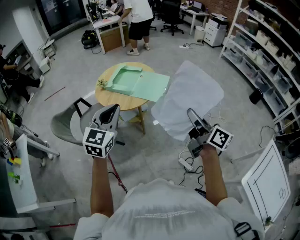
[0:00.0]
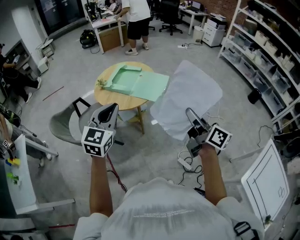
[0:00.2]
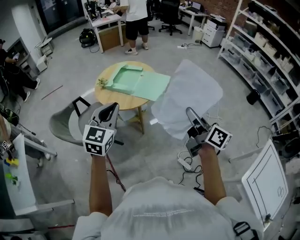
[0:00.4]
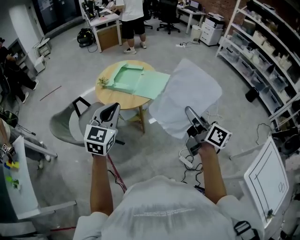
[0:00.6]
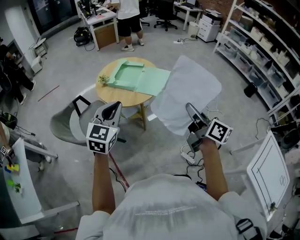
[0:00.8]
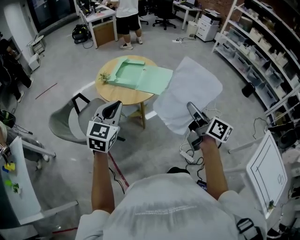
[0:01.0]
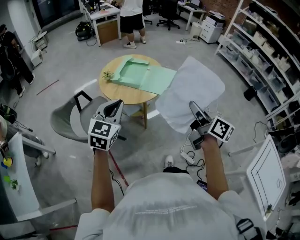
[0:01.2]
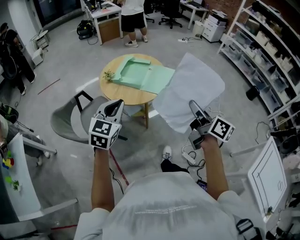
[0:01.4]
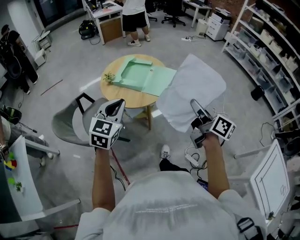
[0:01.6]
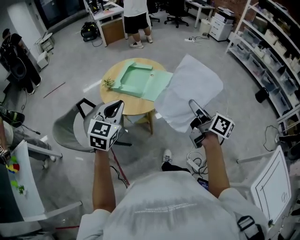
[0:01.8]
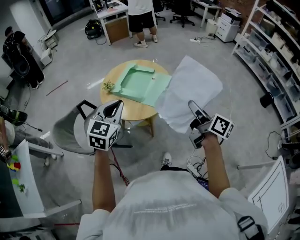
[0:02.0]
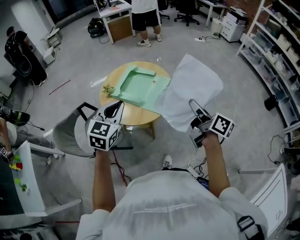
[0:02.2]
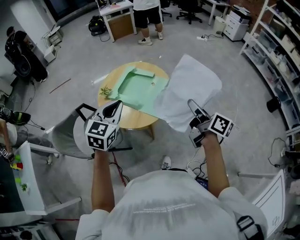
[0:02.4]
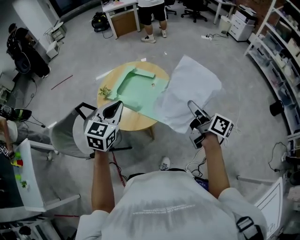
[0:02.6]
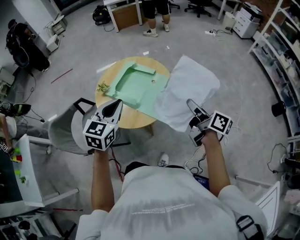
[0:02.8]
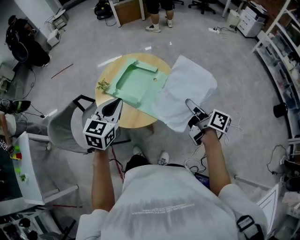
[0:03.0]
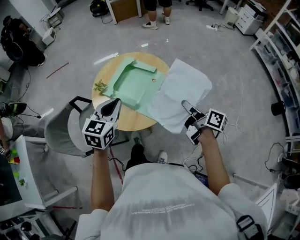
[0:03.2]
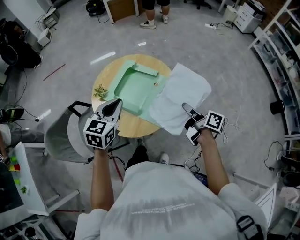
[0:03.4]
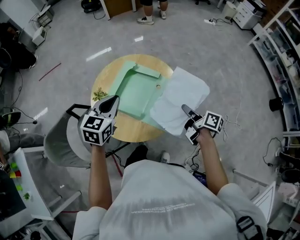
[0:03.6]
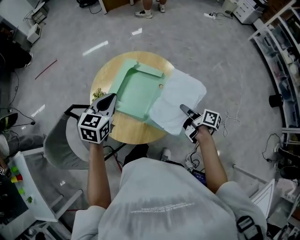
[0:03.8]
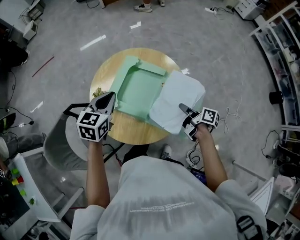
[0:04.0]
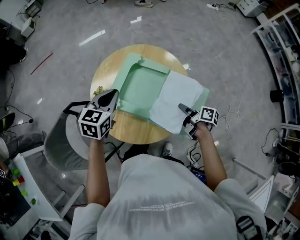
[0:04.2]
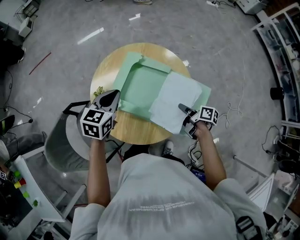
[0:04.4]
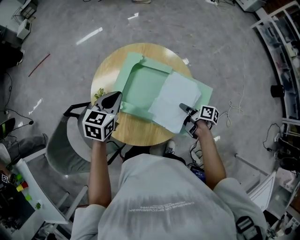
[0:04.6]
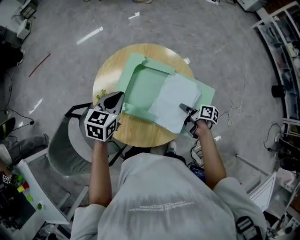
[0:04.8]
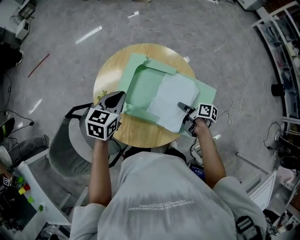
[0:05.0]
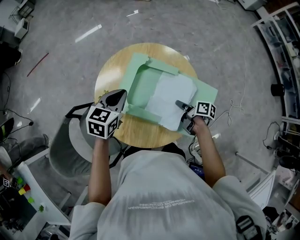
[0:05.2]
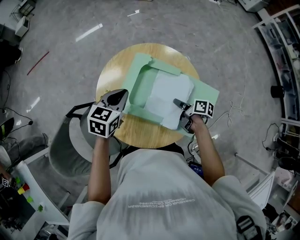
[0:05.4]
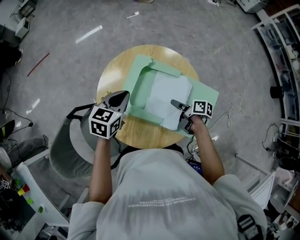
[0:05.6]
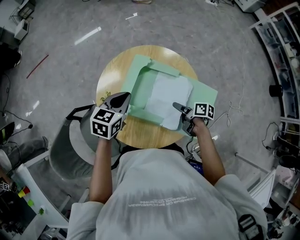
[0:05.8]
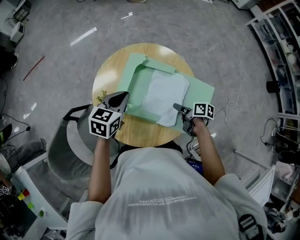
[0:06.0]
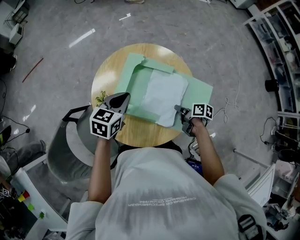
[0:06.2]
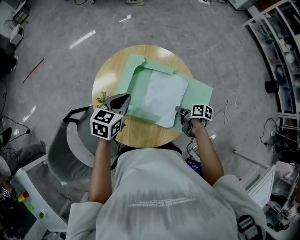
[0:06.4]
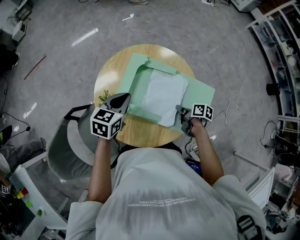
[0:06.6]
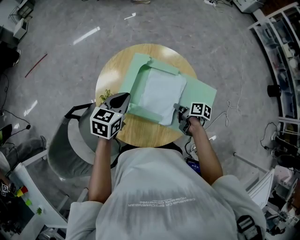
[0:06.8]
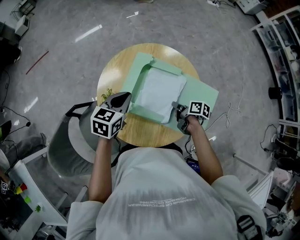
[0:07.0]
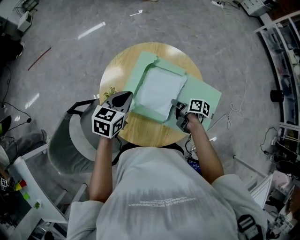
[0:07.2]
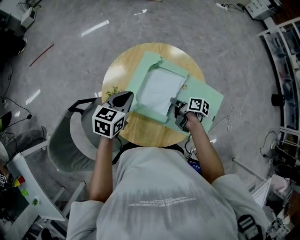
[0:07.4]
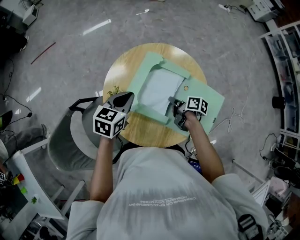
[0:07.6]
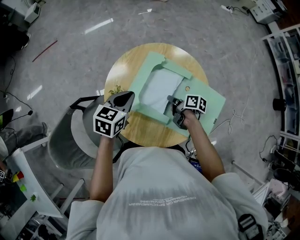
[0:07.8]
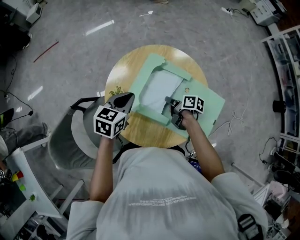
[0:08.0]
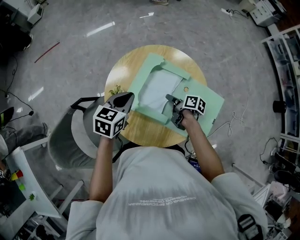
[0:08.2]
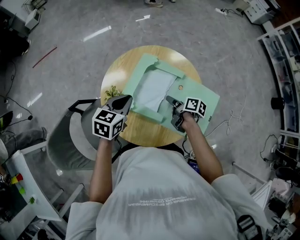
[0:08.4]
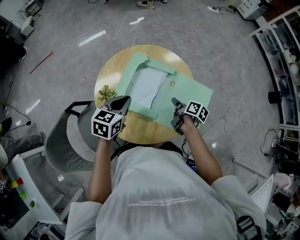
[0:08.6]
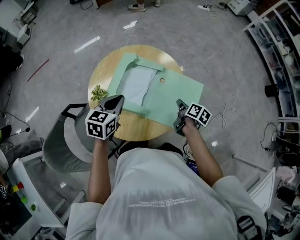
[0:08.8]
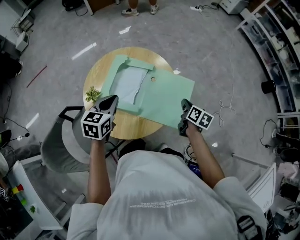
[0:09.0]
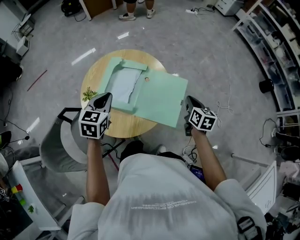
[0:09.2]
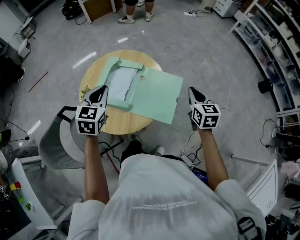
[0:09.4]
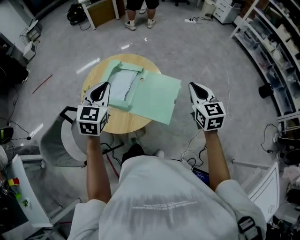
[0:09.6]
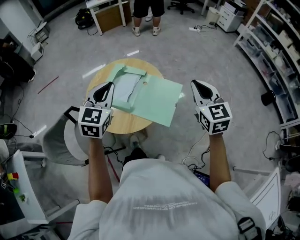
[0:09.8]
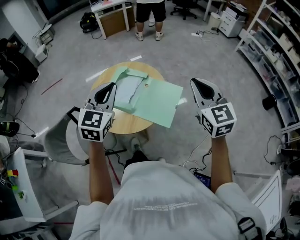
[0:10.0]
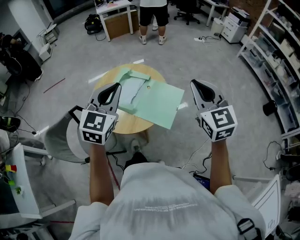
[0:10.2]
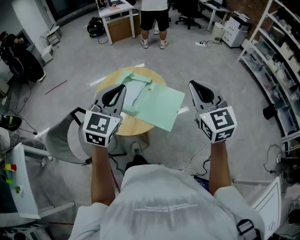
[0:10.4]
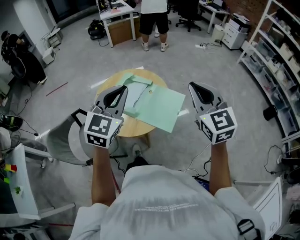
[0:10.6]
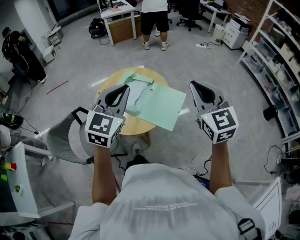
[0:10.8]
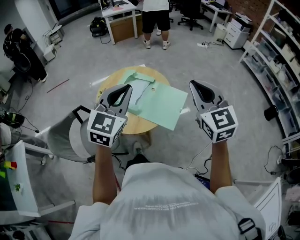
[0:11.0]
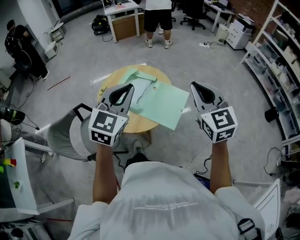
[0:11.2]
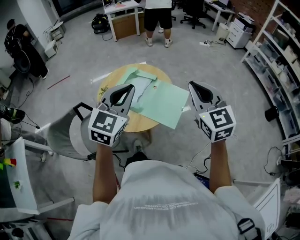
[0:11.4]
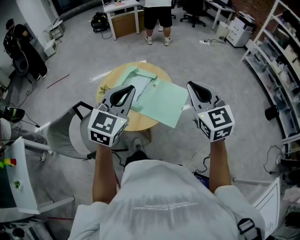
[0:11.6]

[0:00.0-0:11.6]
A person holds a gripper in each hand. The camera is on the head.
0.0 to 1.4 s: The left gripper heads to the left, downward and forward, covering some 15 cm; the right gripper travels to the left and forward by roughly 15 cm.
1.4 to 2.8 s: The right gripper heads forward, covering about 30 cm, and changes its angle by approximately 20 degrees; the left gripper moves forward and to the right, about 30 cm.
2.8 to 4.4 s: The left gripper shifts approximately 30 cm forward, downward and to the left; the right gripper goes about 35 cm downward and forward, and rotates roughly 40 degrees.
4.4 to 5.8 s: The right gripper is displaced to the left by about 5 cm, and opens.
5.8 to 7.2 s: The right gripper closes up.
7.2 to 8.8 s: The left gripper heads backward, covering approximately 5 cm; the right gripper travels to the right, upward and backward by roughly 15 cm, turns by approximately 20 degrees, and opens, then closes again.
8.8 to 10.2 s: The left gripper shifts approximately 35 cm upward, backward and to the right, and turns by about 40 degrees, while the right gripper moves upward, some 40 cm, and rolls counterclockwise, seen from behind, by approximately 80 degrees.
10.2 to 11.6 s: The right gripper ends up roughly 5 cm from where it was.

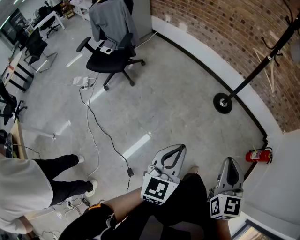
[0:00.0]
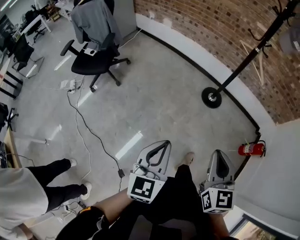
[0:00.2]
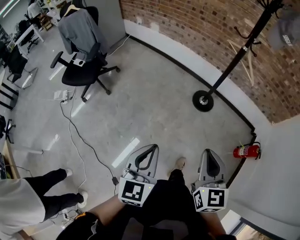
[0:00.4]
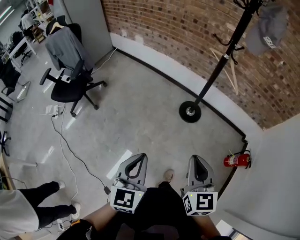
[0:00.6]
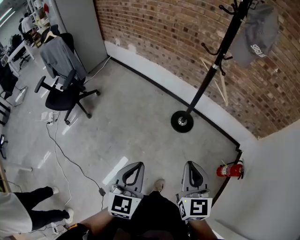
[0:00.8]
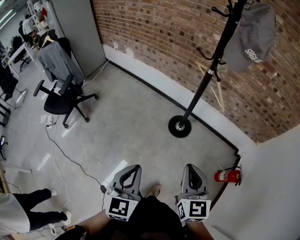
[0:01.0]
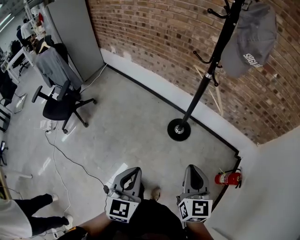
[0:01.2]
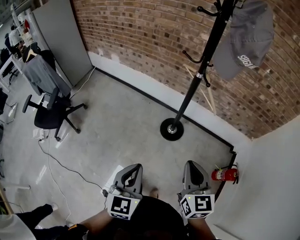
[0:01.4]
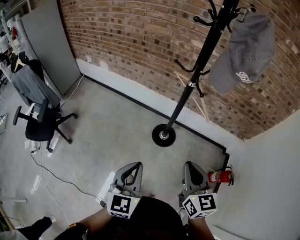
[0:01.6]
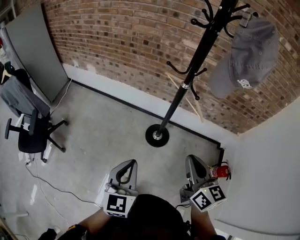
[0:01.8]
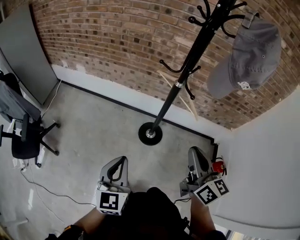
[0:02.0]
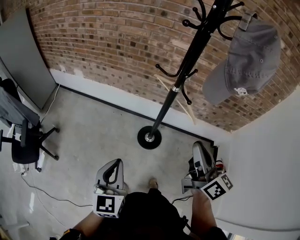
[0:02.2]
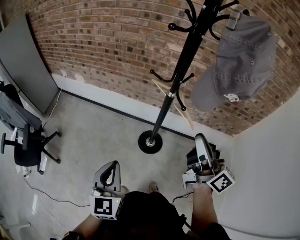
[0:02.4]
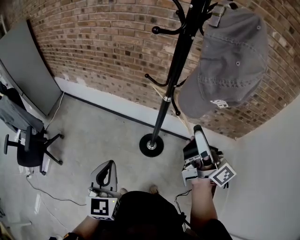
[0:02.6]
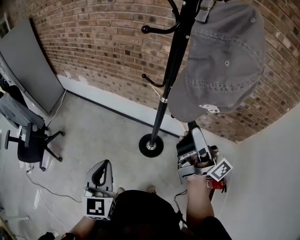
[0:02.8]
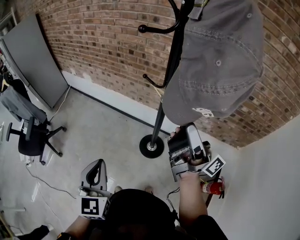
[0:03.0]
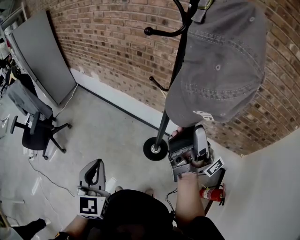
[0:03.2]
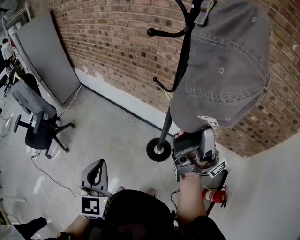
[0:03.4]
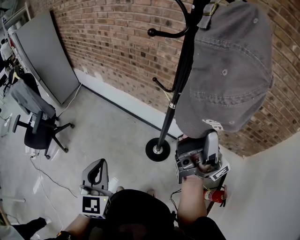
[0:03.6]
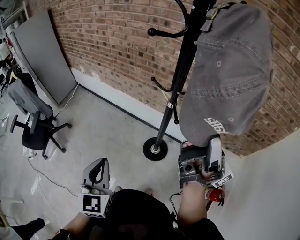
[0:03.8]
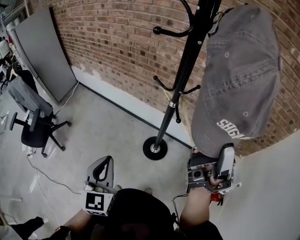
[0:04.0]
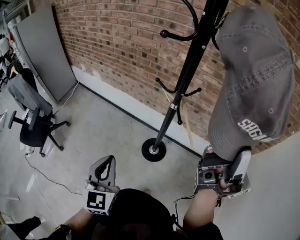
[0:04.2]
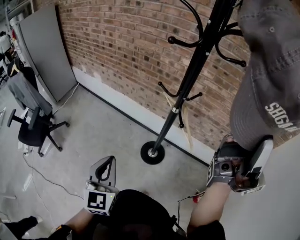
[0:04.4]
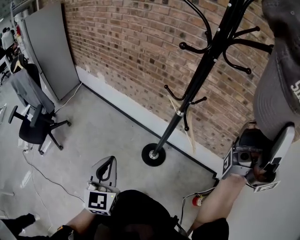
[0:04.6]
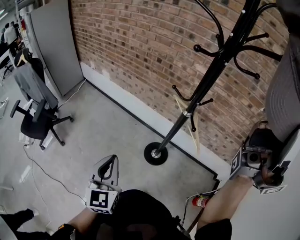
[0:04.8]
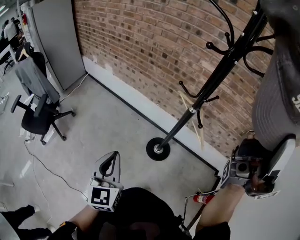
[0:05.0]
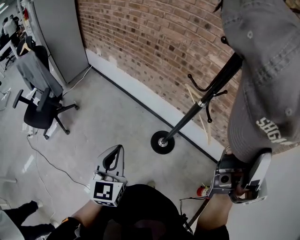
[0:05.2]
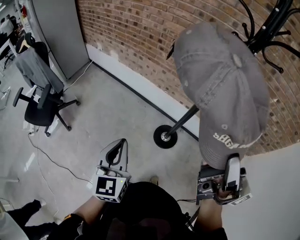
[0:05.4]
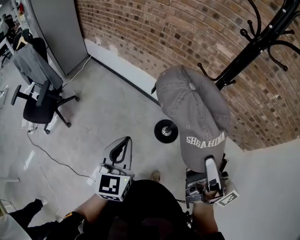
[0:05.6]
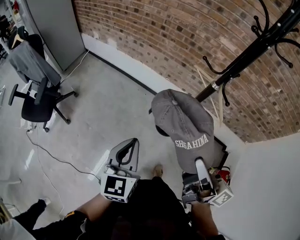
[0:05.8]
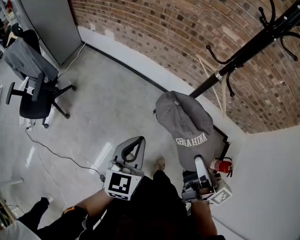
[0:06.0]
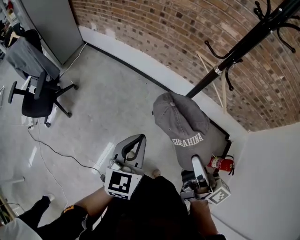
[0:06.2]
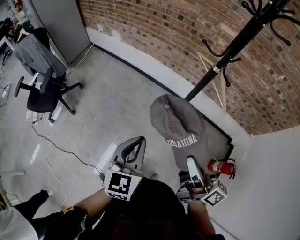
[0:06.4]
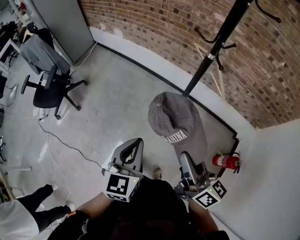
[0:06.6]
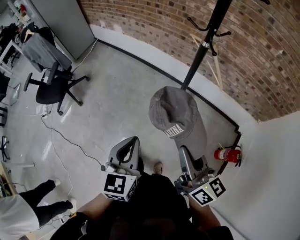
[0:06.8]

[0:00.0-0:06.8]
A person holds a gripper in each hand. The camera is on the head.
0.0 to 1.4 s: Both grippers are carried forward and to the right, about 40 cm.
1.4 to 2.8 s: The right gripper goes roughly 35 cm forward, upward and to the right, points its fingers about 50 degrees further upward, and opens; the left gripper moves forward, about 20 cm.
2.8 to 4.0 s: The right gripper shifts approximately 10 cm upward and backward, rotates about 30 degrees, and closes up.
4.0 to 5.4 s: Both grippers move to the left, some 15 cm. The right gripper reaches roughly 20 cm upward, then returns.
5.4 to 6.8 s: The right gripper is displaced downward and backward by approximately 30 cm, and tips its fingers downward by some 40 degrees, while the left gripper is displaced backward by some 20 cm.

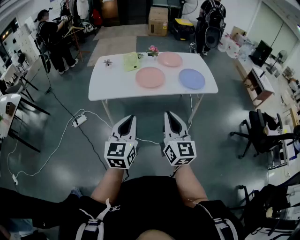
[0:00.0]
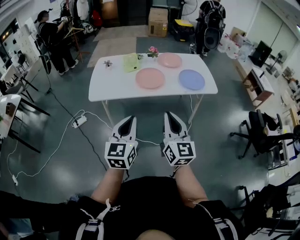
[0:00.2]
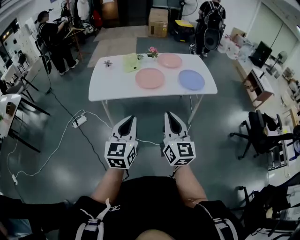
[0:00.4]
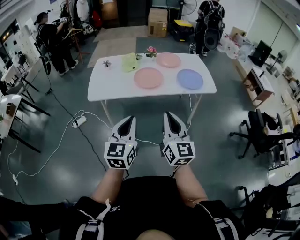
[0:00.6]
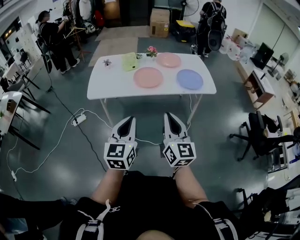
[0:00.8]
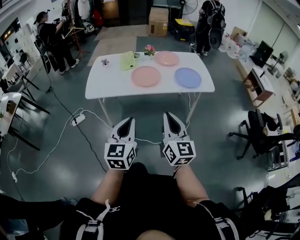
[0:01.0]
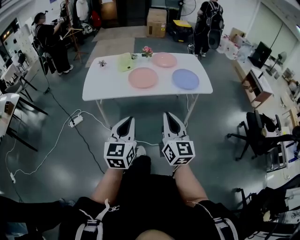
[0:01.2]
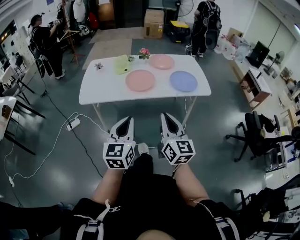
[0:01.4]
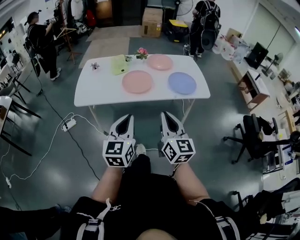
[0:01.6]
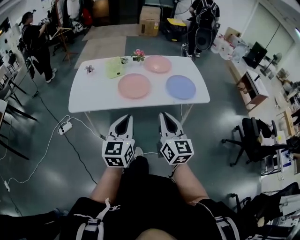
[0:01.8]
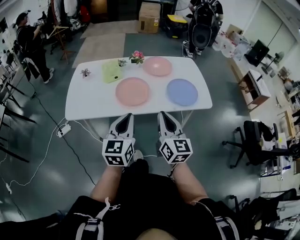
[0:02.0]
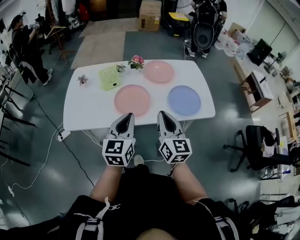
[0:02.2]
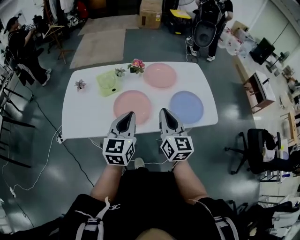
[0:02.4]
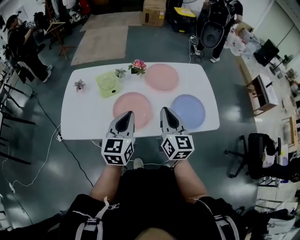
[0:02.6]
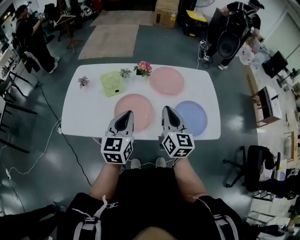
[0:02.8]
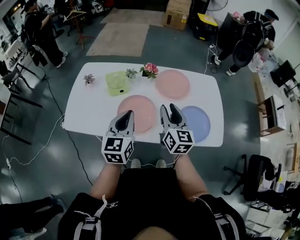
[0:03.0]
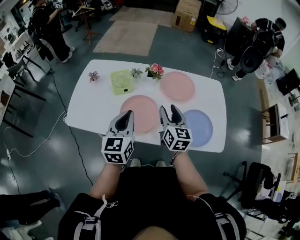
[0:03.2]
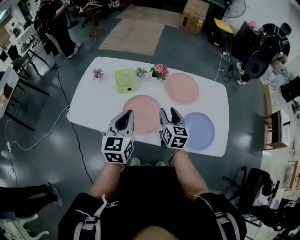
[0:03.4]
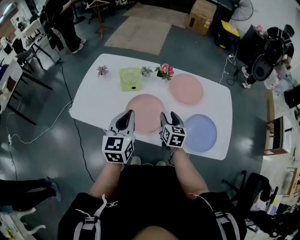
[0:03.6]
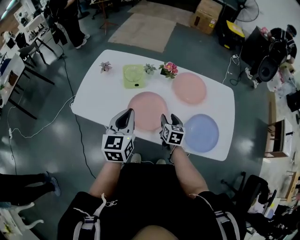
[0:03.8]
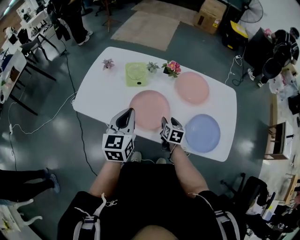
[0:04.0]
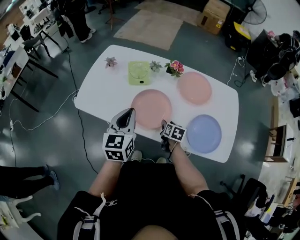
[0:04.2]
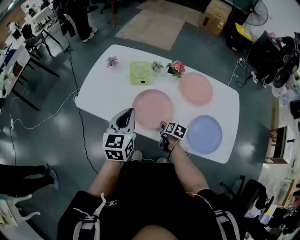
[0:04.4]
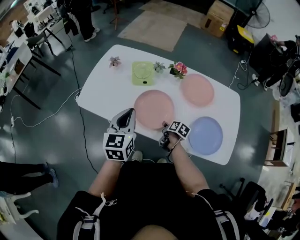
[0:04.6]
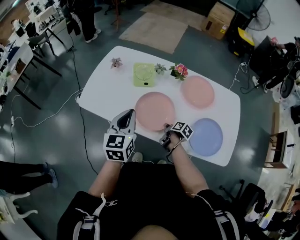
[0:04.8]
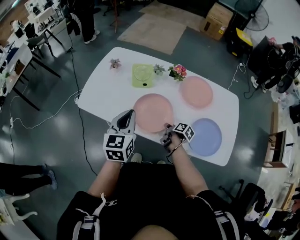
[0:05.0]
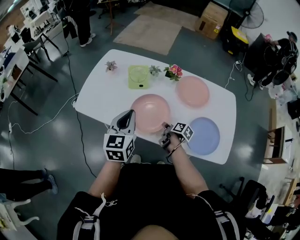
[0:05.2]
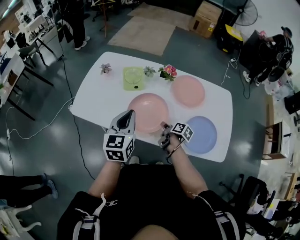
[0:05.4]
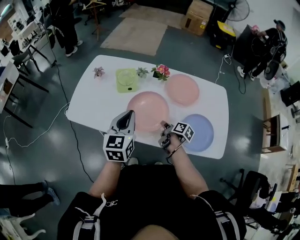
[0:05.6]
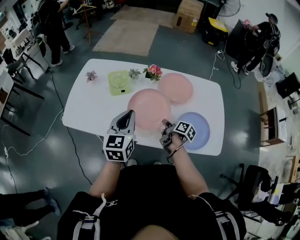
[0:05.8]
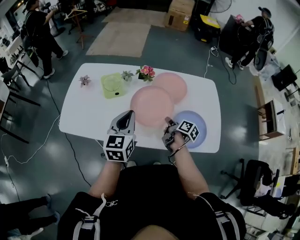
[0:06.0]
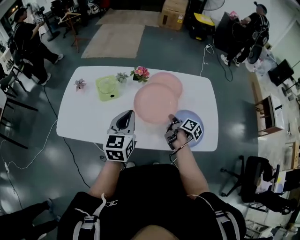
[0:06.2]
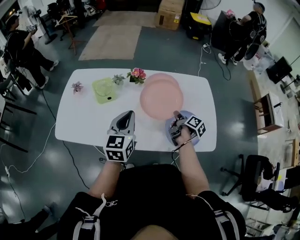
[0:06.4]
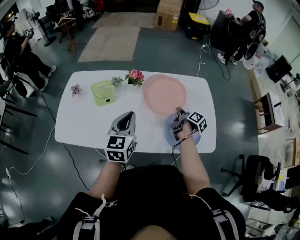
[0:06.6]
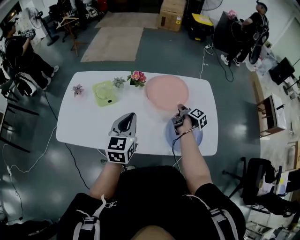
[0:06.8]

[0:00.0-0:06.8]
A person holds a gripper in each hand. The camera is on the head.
0.0 to 1.4 s: The grippers both shift to the right by about 10 cm.
1.4 to 2.8 s: Both grippers are carried forward, some 50 cm.
2.8 to 4.0 s: The right gripper heads downward, covering some 25 cm, tips its fingers downward by approximately 40 degrees, and opens; the left gripper ends up approximately 5 cm from where it was.
4.0 to 5.4 s: The right gripper twists about 40 degrees clockwise, seen from behind, and closes its fingers.
5.4 to 6.8 s: The right gripper is displaced to the right and forward by approximately 25 cm, and changes its angle by roughly 40 degrees, while the left gripper moves to the right and forward, about 15 cm.
